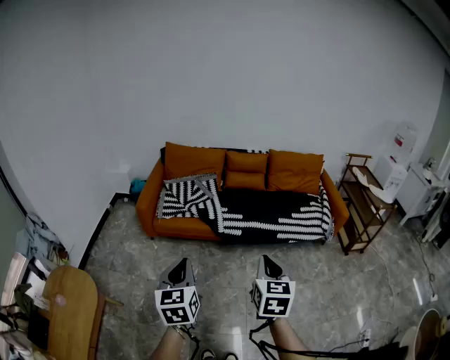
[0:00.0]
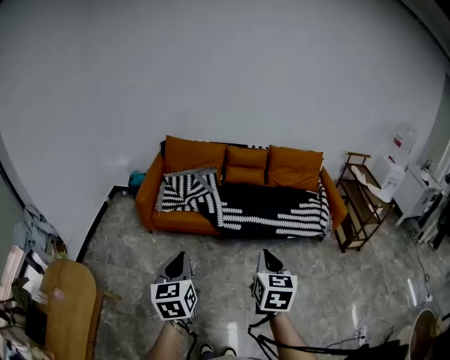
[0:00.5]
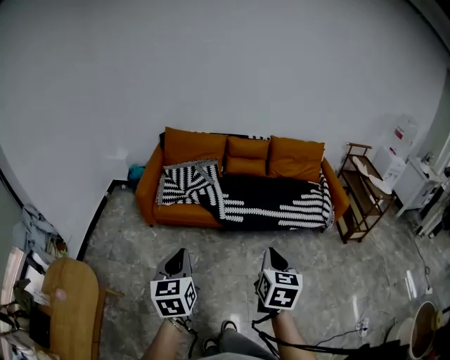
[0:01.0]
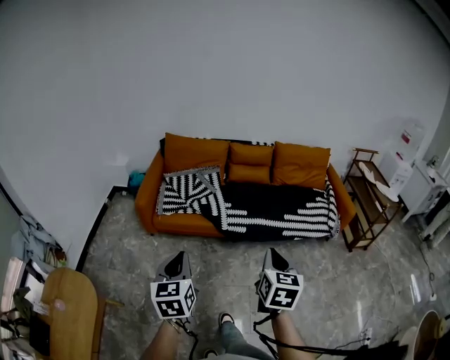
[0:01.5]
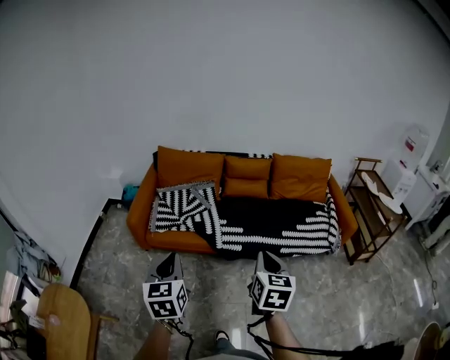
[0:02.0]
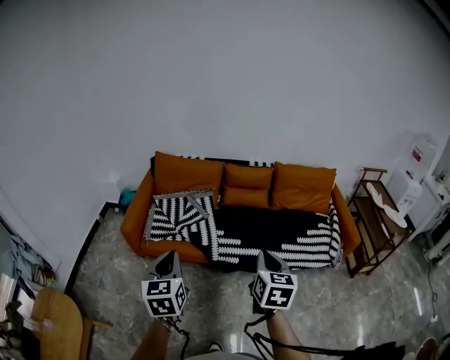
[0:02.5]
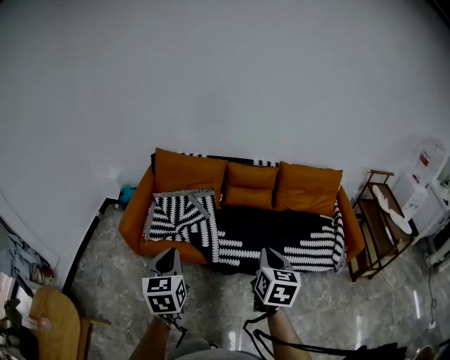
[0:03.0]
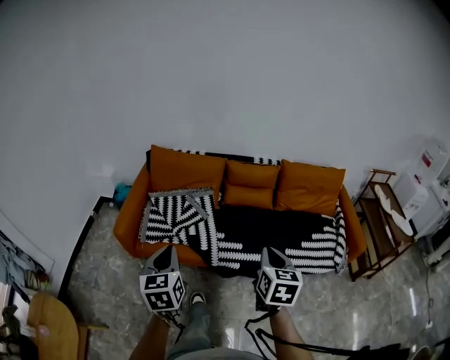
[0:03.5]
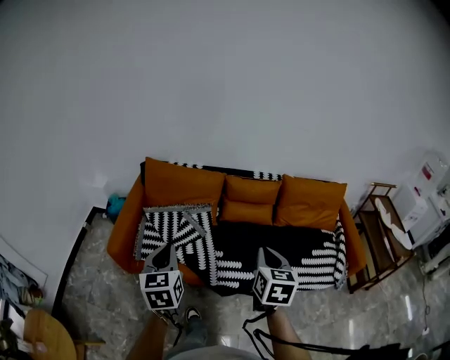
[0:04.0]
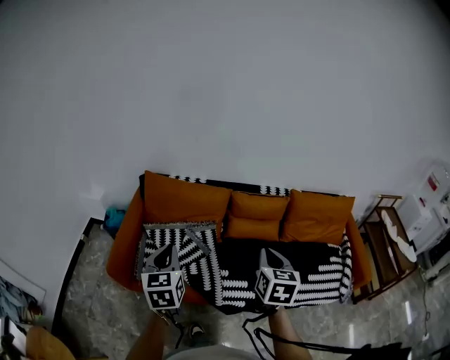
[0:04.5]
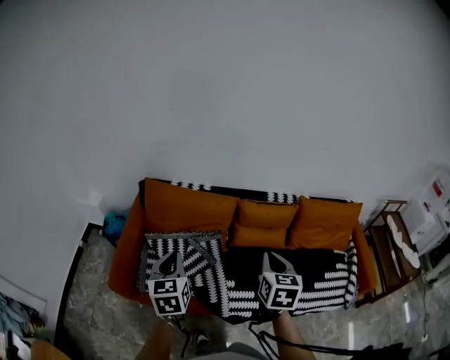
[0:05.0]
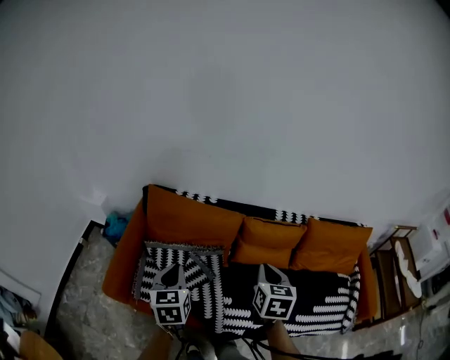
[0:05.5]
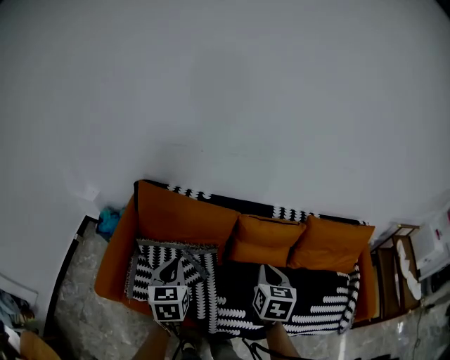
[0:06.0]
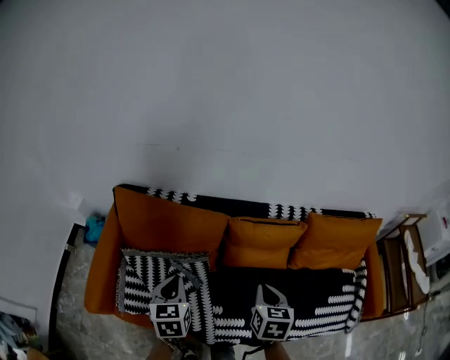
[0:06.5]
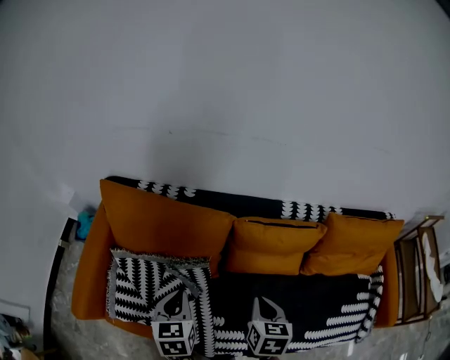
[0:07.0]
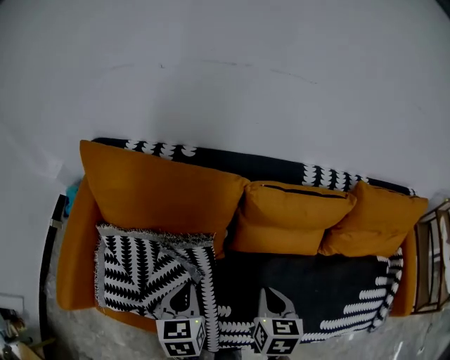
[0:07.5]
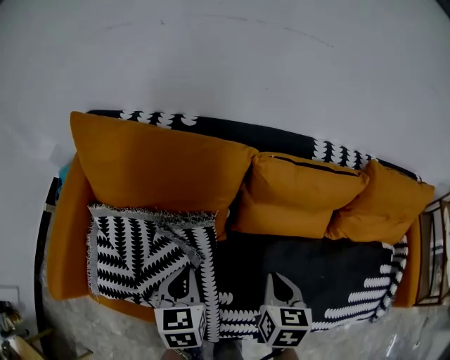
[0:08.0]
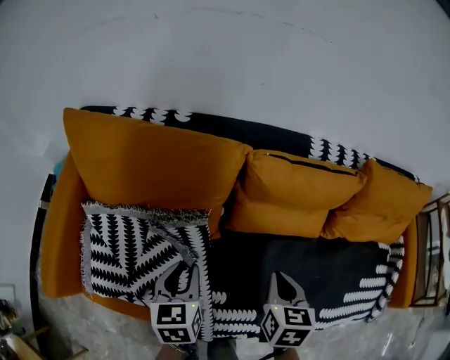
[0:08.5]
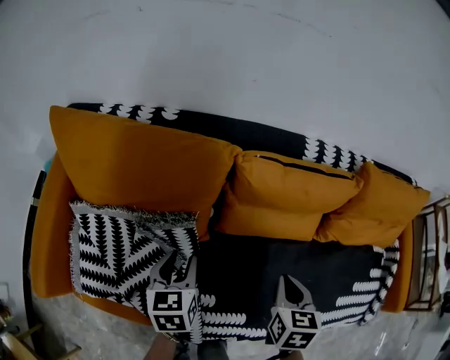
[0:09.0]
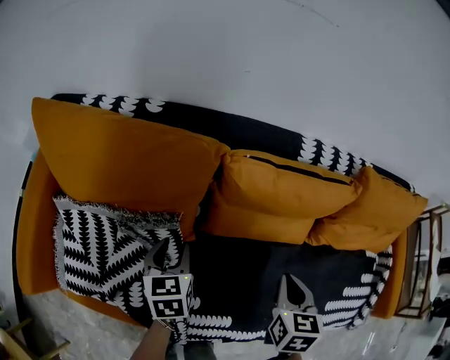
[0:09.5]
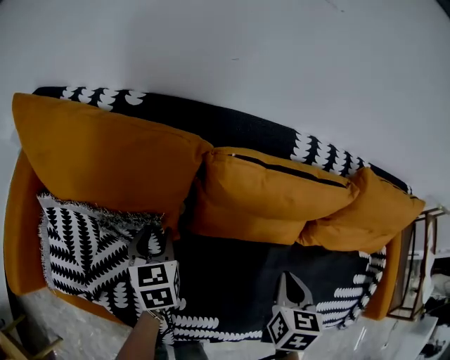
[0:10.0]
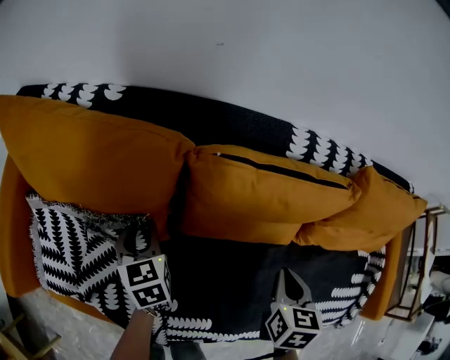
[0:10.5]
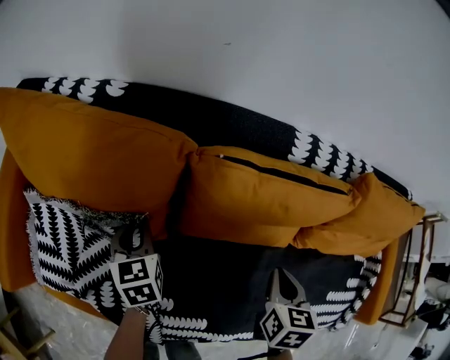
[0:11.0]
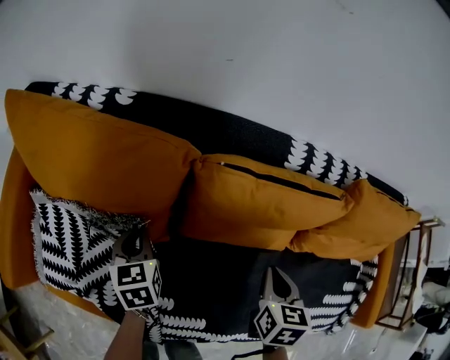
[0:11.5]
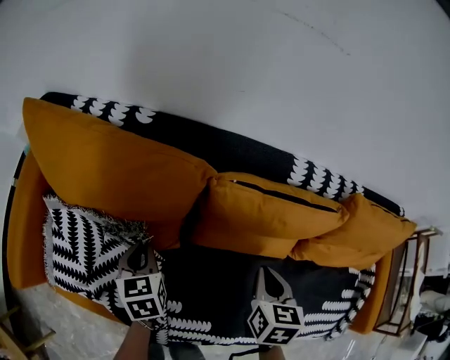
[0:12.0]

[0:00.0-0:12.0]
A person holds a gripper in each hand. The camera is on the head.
0:00.0 to 0:02.0: Both grippers move forward, about 20 cm.
0:02.0 to 0:04.0: The grippers both shift forward by about 30 cm.
0:04.0 to 0:06.0: Both grippers travel together forward, about 30 cm.
0:06.0 to 0:08.0: The grippers both shift downward by roughly 35 cm.
0:08.0 to 0:10.0: The right gripper moves to the right, roughly 15 cm. The left gripper travels forward and downward by some 15 cm, and opens.
0:10.0 to 0:12.0: The left gripper closes. Meanwhile the right gripper heads forward, covering roughly 5 cm.

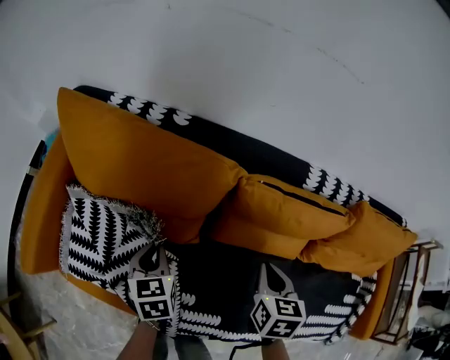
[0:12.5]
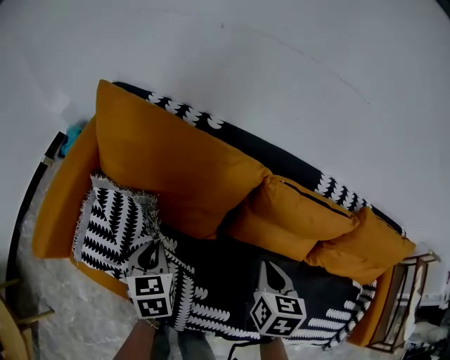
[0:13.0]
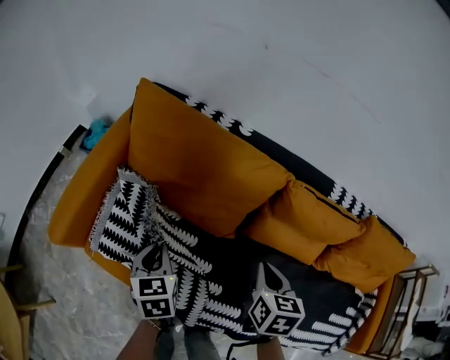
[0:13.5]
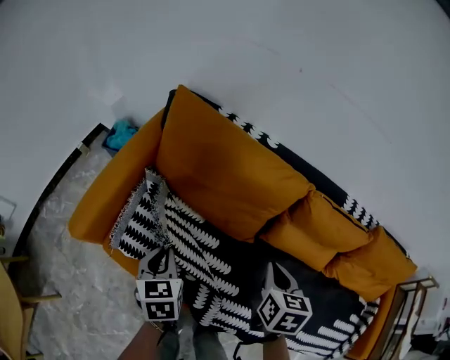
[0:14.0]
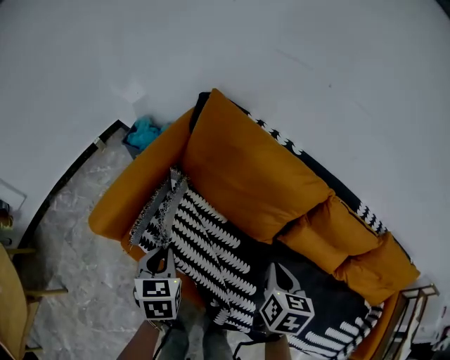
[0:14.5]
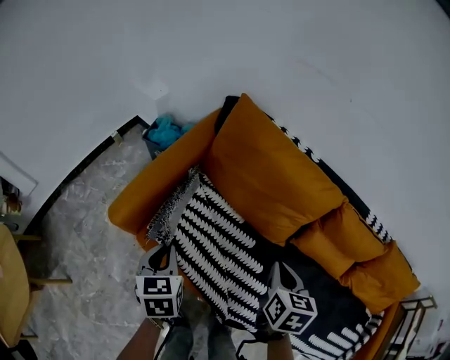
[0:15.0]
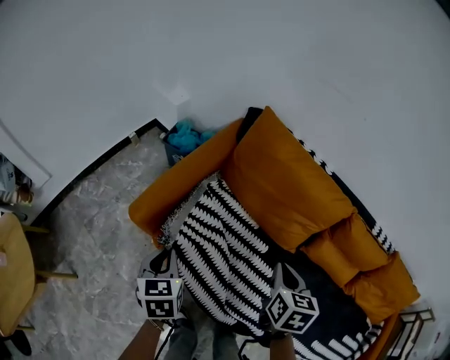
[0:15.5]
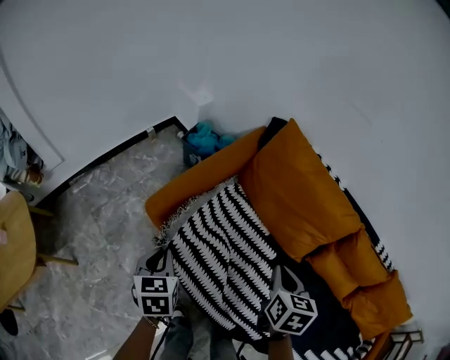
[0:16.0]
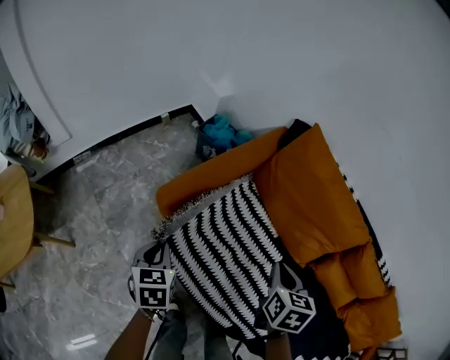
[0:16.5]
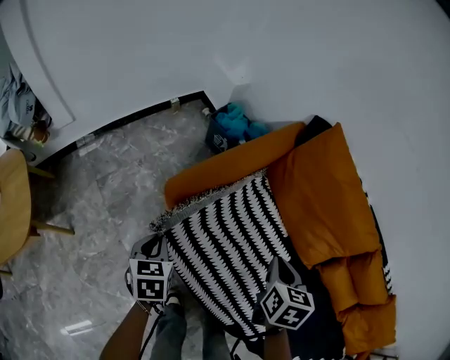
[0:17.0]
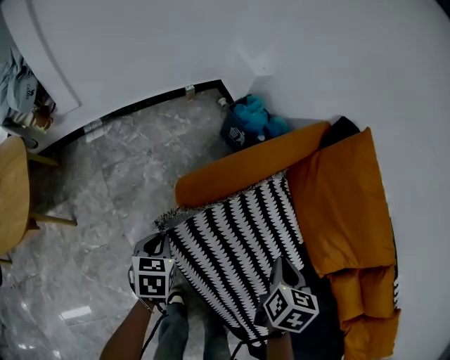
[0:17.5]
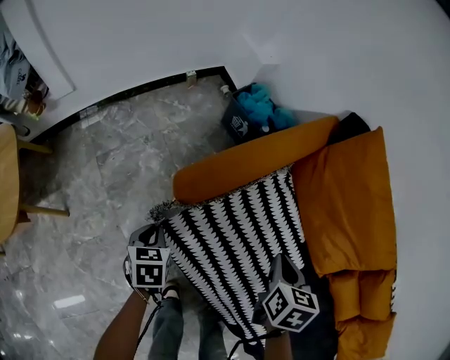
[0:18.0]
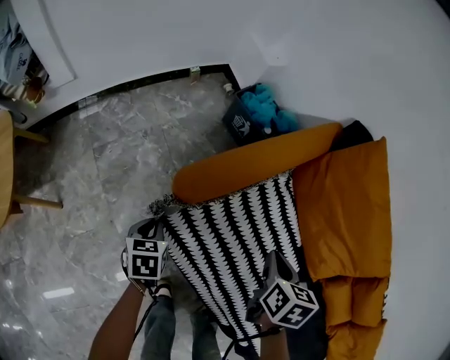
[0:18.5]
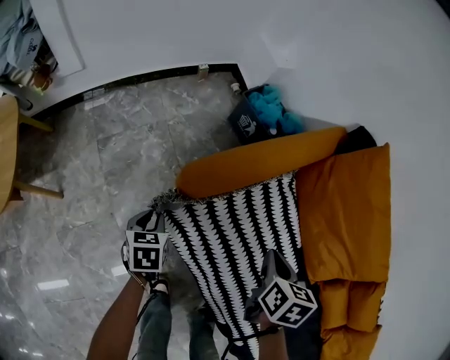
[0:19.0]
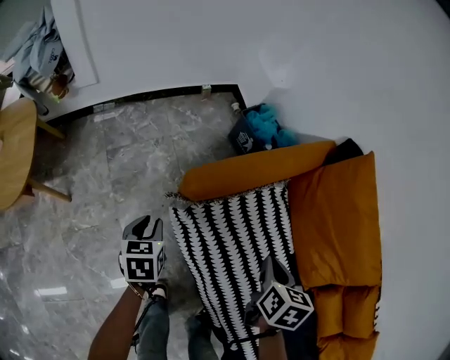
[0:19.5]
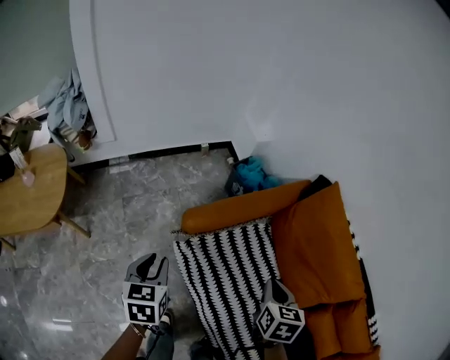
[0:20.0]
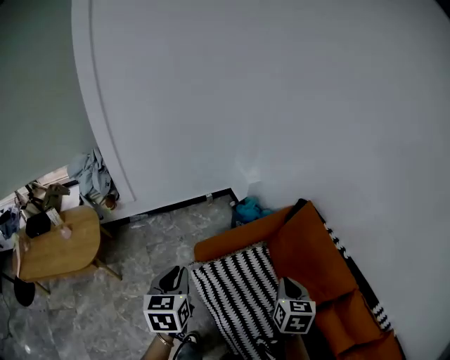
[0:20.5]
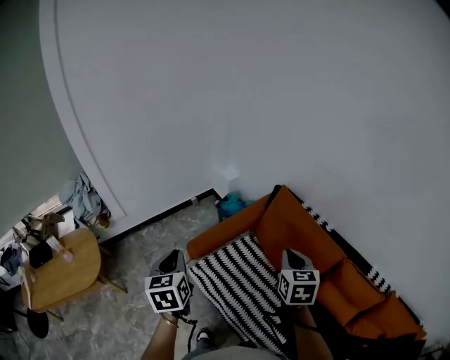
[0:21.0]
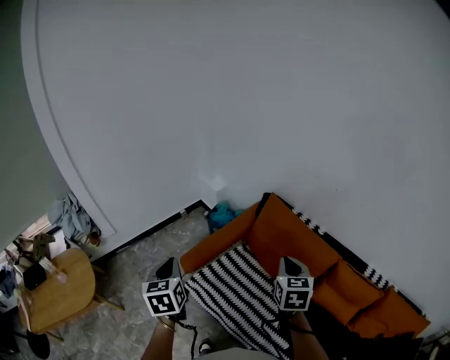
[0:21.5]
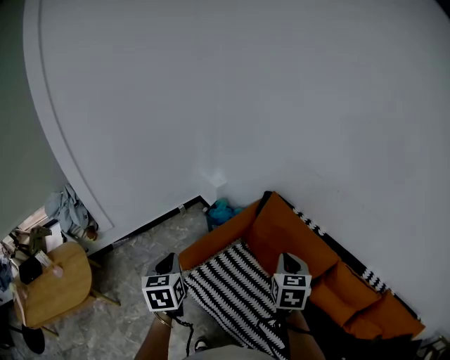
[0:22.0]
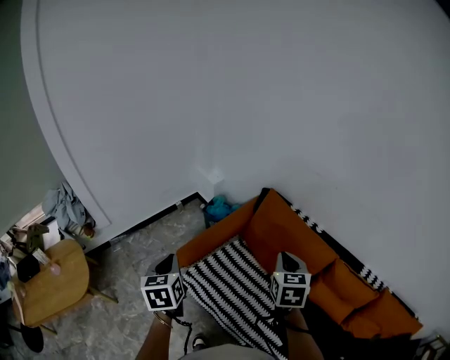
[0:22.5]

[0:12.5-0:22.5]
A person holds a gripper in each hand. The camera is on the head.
0:12.5 to 0:14.5: The right gripper shifts about 25 cm to the left. Meanwhile the left gripper goes about 30 cm to the left and backward.
0:14.5 to 0:16.5: The left gripper moves to the left and backward, approximately 25 cm. The right gripper moves to the left, some 20 cm.
0:16.5 to 0:18.5: The right gripper shifts about 15 cm downward, forward and to the left. Meanwhile the left gripper goes about 20 cm downward.
0:18.5 to 0:20.5: The left gripper travels upward by about 50 cm, and tips its fingers upward by about 30 degrees. The right gripper travels upward by about 30 cm, and changes its angle by roughly 30 degrees.
0:20.5 to 0:22.5: The left gripper changes place by approximately 5 cm. The right gripper goes roughly 10 cm upward and to the right.

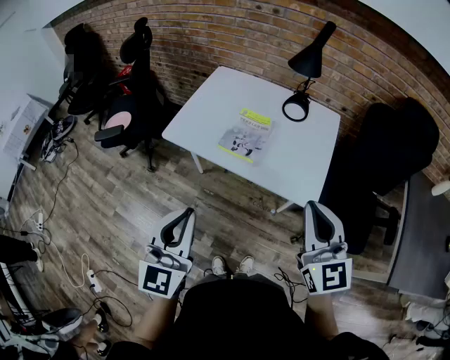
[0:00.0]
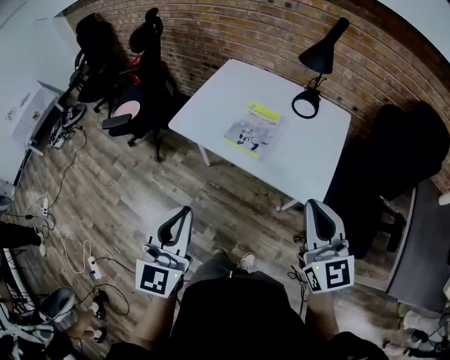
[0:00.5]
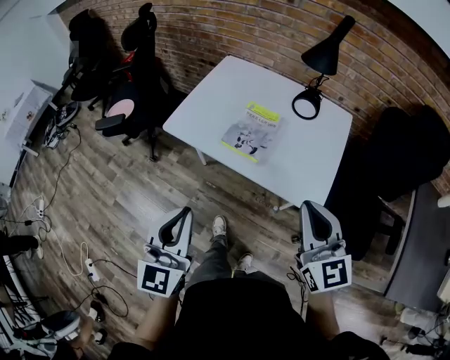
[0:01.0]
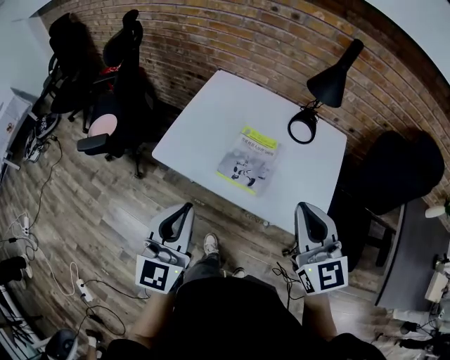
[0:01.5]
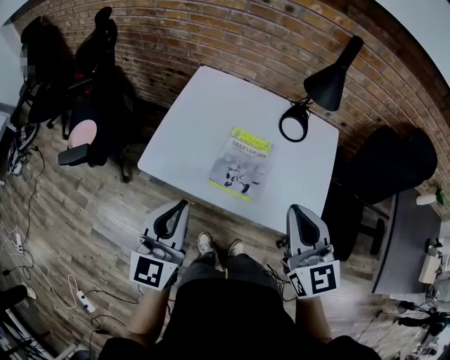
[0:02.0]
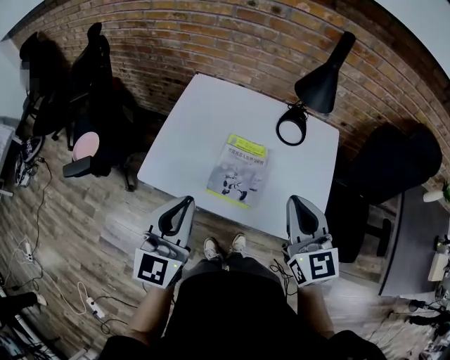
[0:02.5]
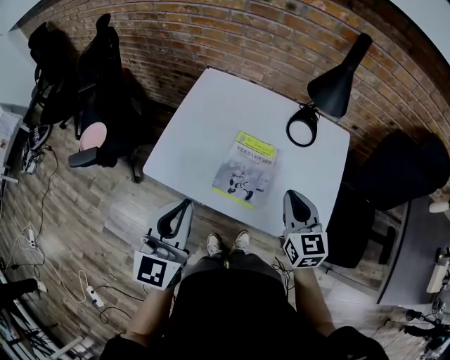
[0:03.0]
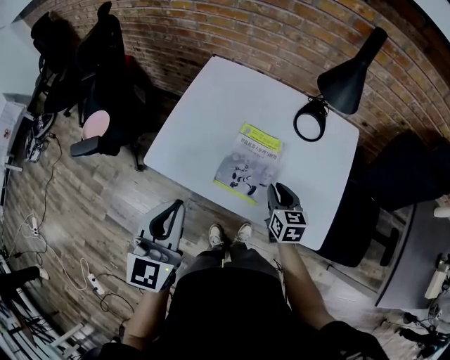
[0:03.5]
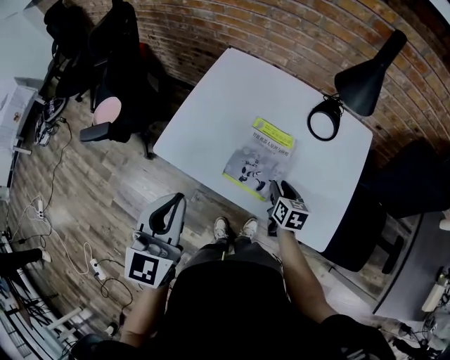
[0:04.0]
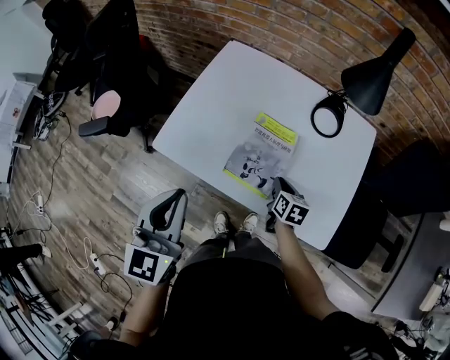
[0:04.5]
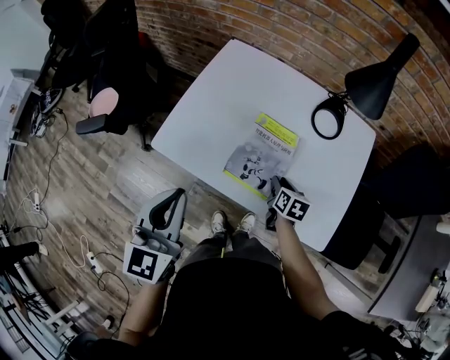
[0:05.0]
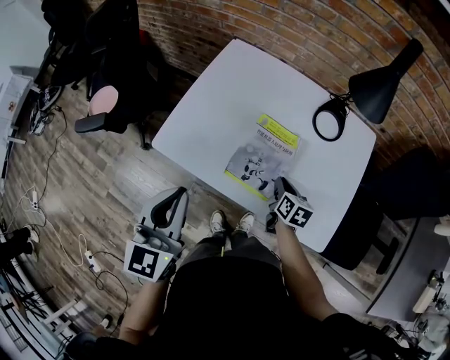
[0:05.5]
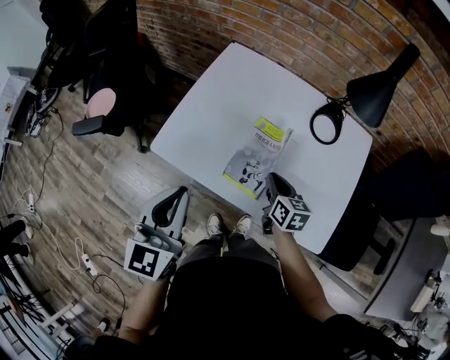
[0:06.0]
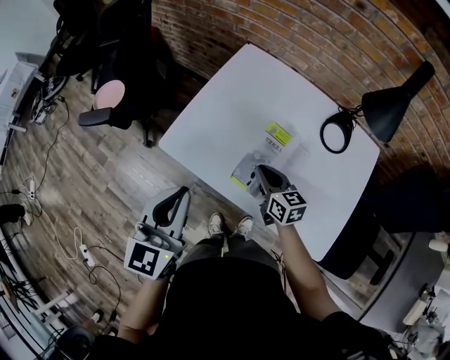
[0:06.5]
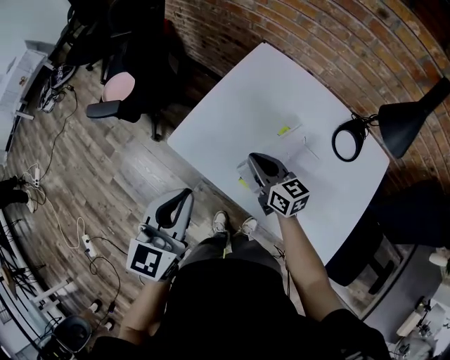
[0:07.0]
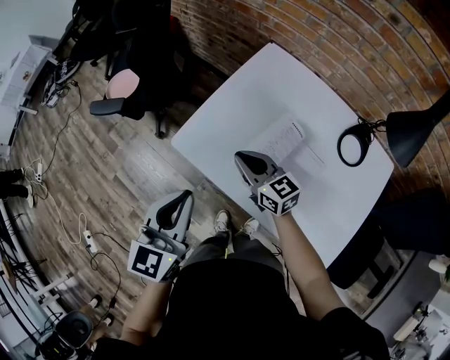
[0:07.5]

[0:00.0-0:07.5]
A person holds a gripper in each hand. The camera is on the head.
0:00.0 to 0:02.0: The right gripper is displaced forward and to the left by approximately 20 cm. The left gripper shifts approximately 25 cm forward.
0:02.0 to 0:04.0: The right gripper is displaced downward by approximately 35 cm, tips its fingers downward by about 30 degrees, and opens its fingers.
0:04.0 to 0:05.5: The right gripper closes.
0:05.5 to 0:07.5: The left gripper moves about 5 cm, while the right gripper ends up some 30 cm from where it was, and rotates about 60 degrees.
